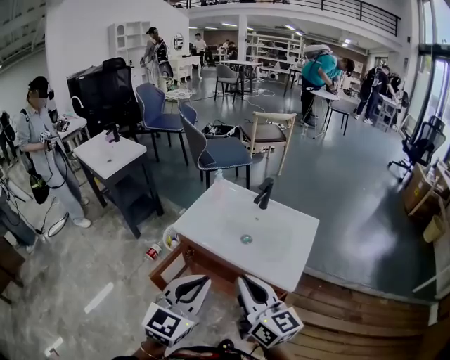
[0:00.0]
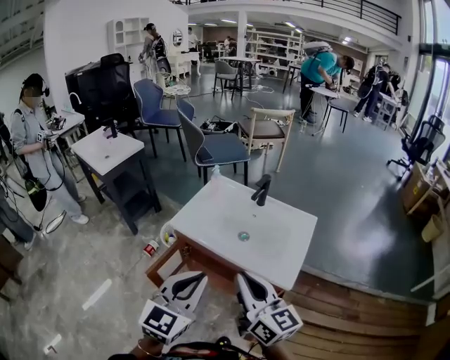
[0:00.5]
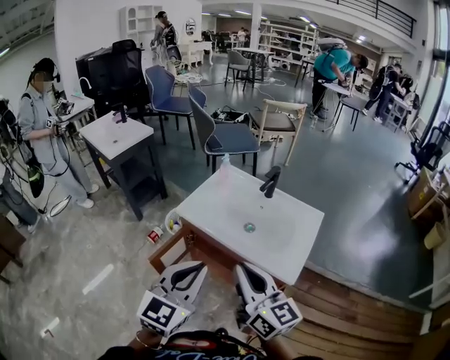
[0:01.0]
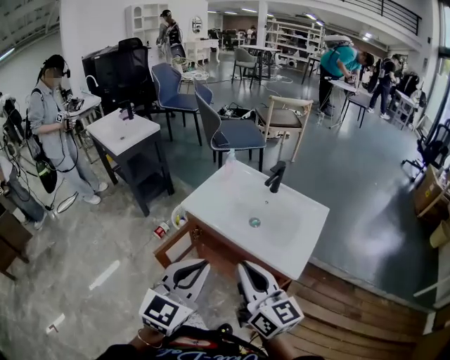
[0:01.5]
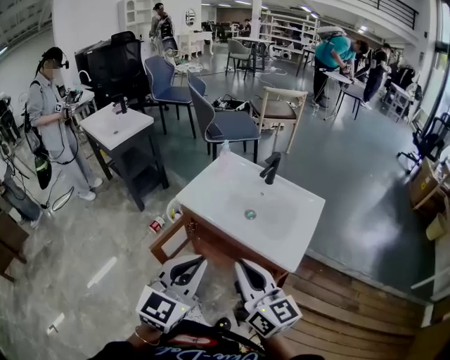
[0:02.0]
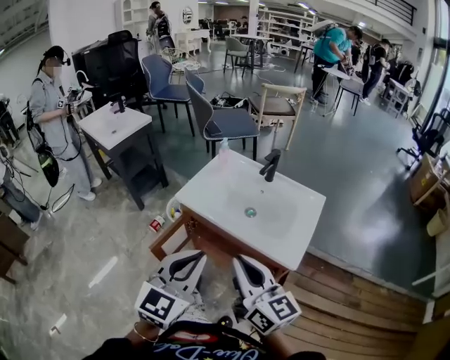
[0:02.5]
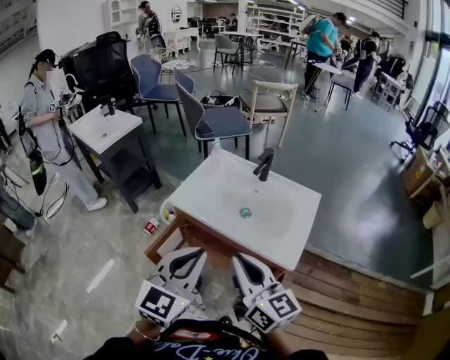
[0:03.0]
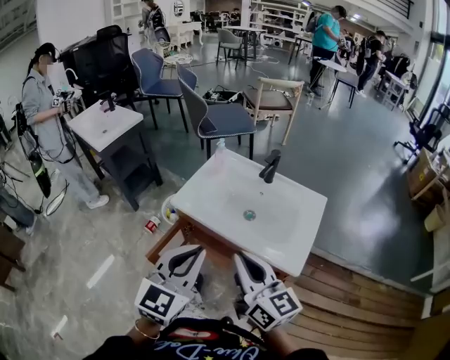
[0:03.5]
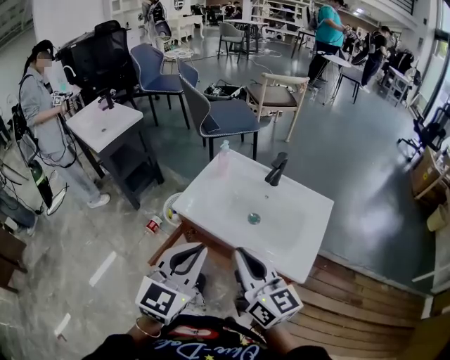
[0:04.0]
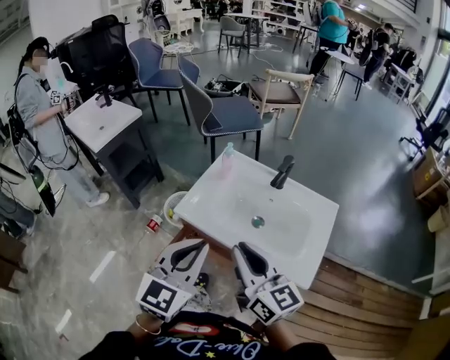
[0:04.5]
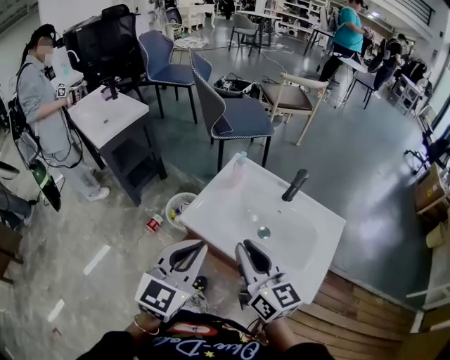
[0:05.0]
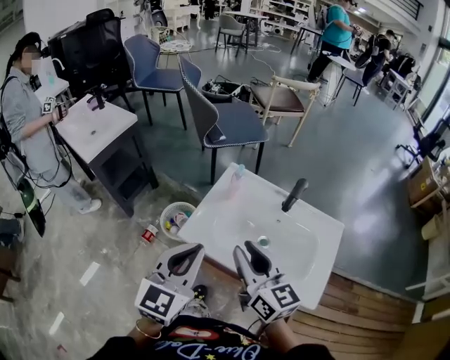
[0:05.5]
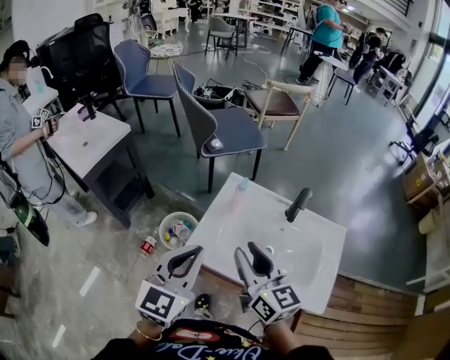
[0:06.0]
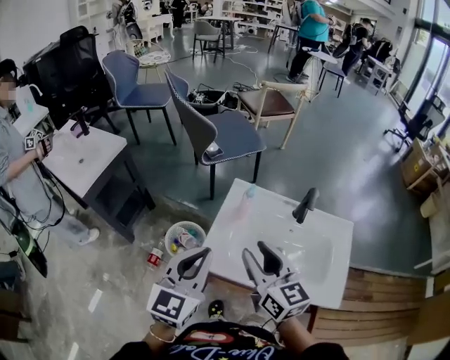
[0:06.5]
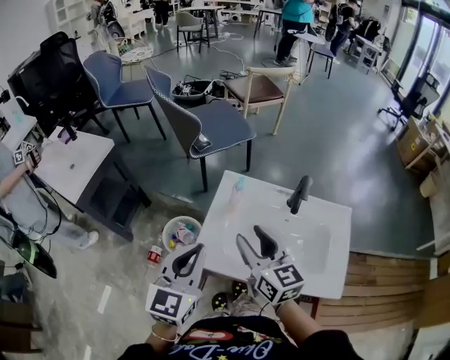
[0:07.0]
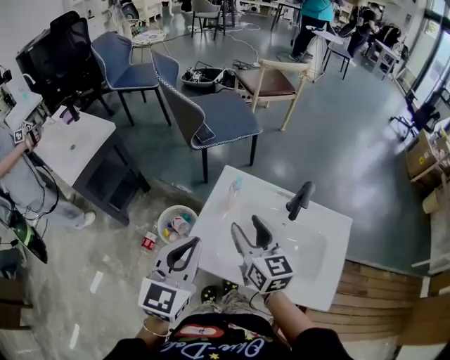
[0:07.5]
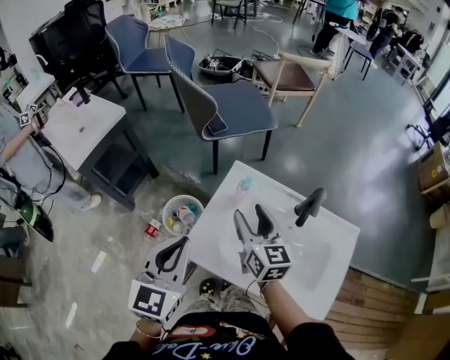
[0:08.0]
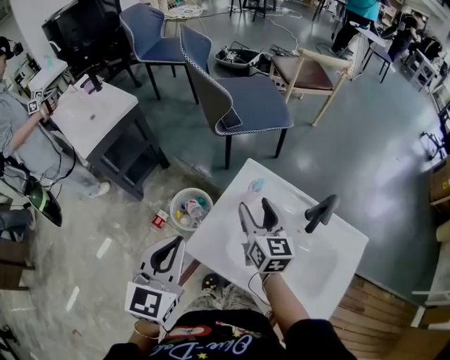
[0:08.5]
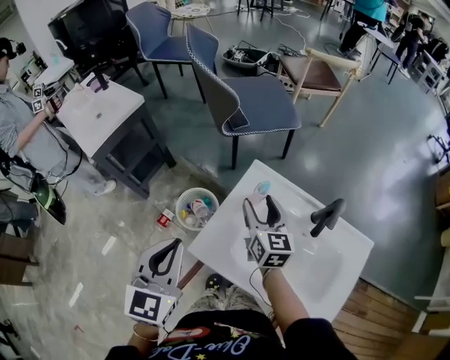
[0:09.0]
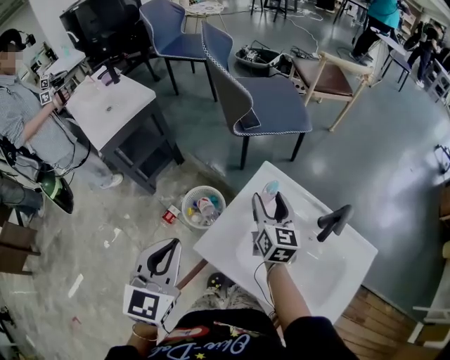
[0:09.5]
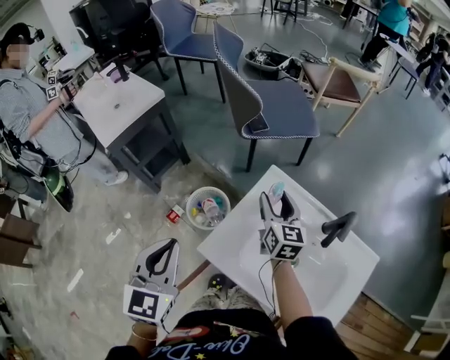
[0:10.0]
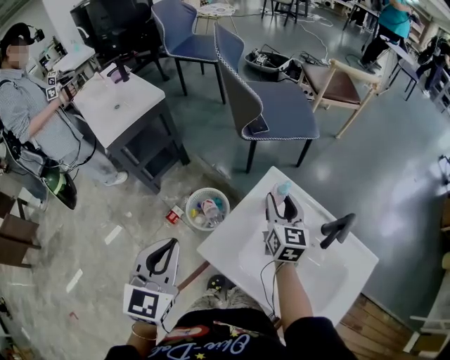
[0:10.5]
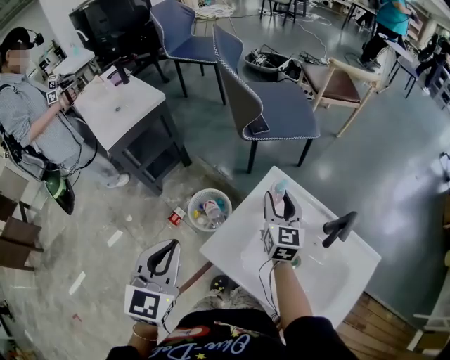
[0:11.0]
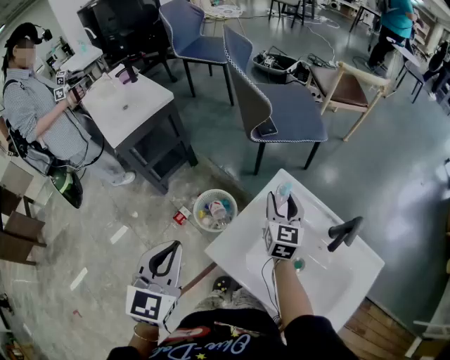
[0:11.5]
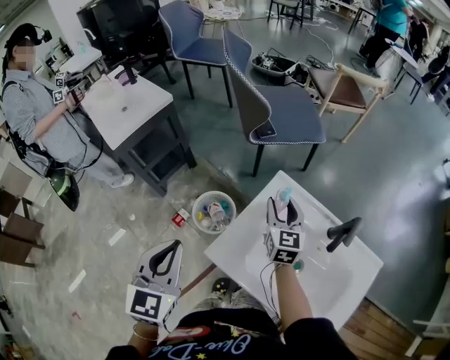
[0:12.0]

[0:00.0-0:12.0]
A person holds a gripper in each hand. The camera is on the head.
0:00.0 to 0:02.0: The grippers make only small movements.
0:02.0 to 0:04.0: Both grippers move forward, approximately 10 cm.
0:04.0 to 0:06.0: The right gripper is displaced forward by roughly 20 cm, and opens its fingers. Meanwhile the left gripper shifts about 20 cm forward and to the left.
0:06.0 to 0:08.0: The right gripper is displaced forward and downward by roughly 15 cm, and opens. Meanwhile the left gripper is displaced forward by about 5 cm.
0:08.0 to 0:10.0: The left gripper is displaced to the left by some 10 cm; the right gripper heads forward and downward, covering about 10 cm.
0:10.0 to 0:12.0: The grippers move only a little.

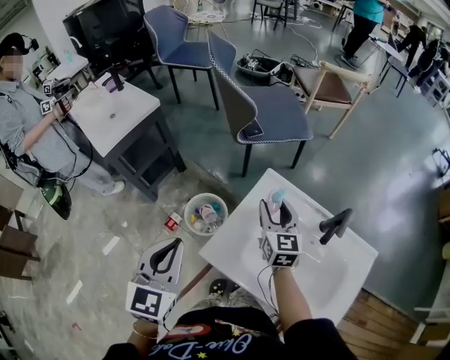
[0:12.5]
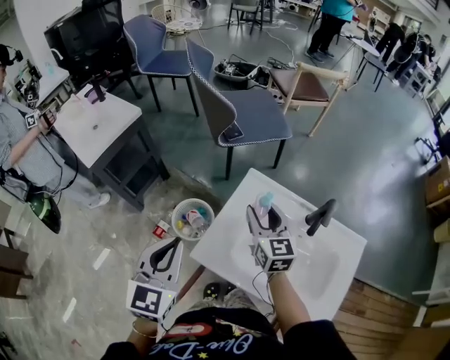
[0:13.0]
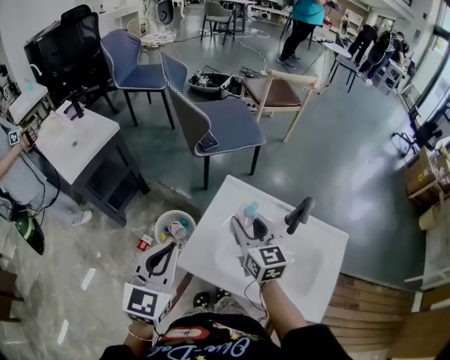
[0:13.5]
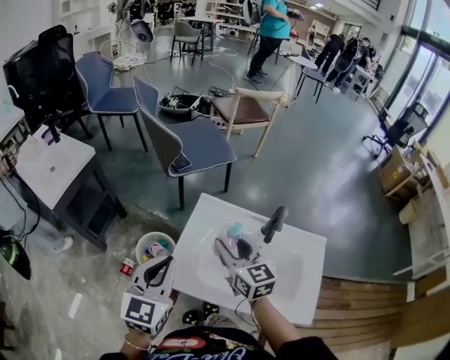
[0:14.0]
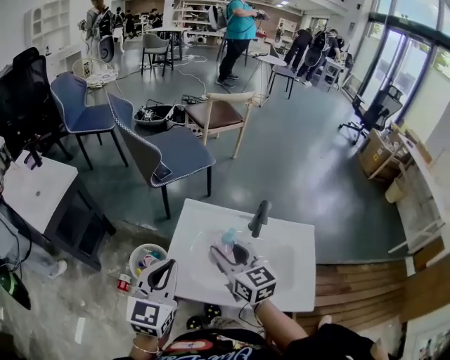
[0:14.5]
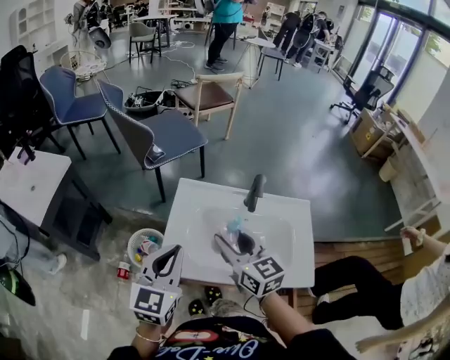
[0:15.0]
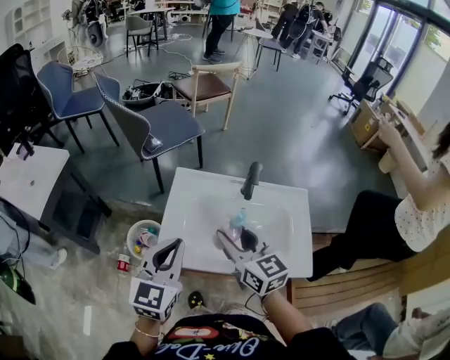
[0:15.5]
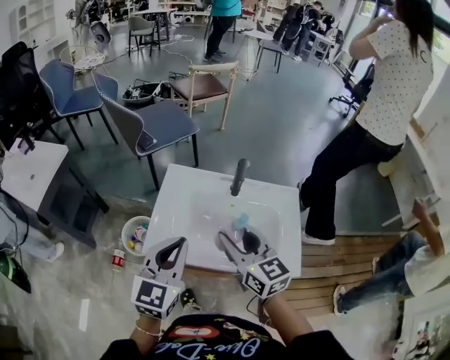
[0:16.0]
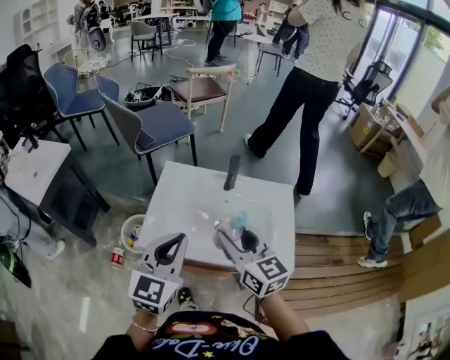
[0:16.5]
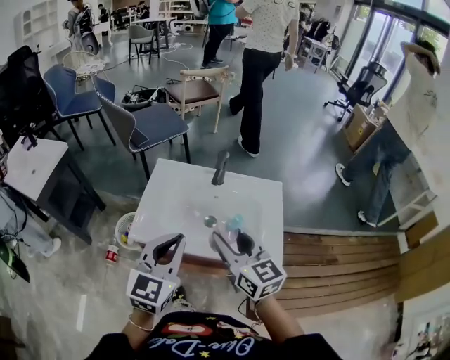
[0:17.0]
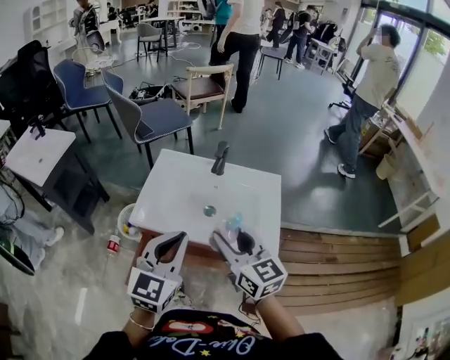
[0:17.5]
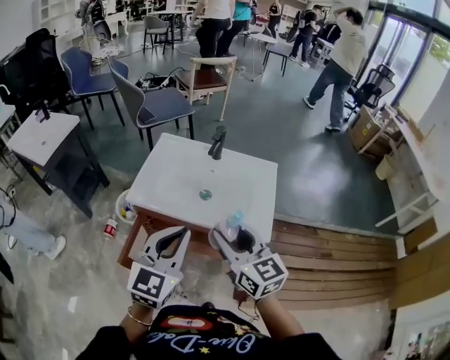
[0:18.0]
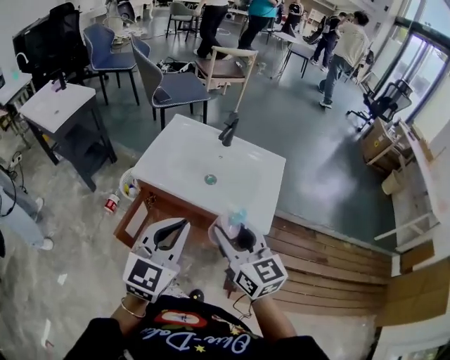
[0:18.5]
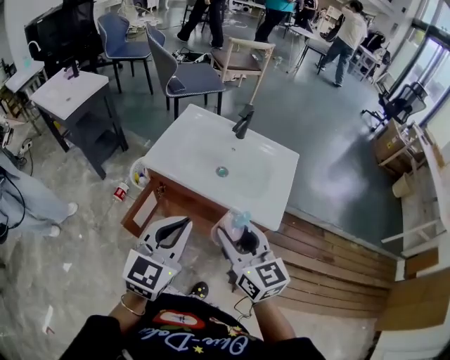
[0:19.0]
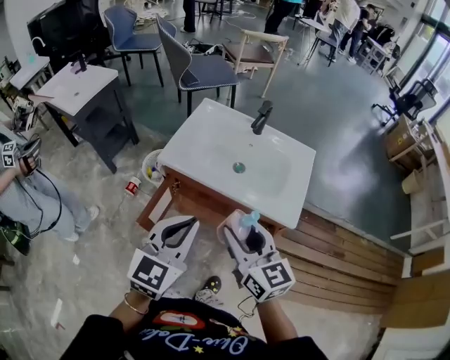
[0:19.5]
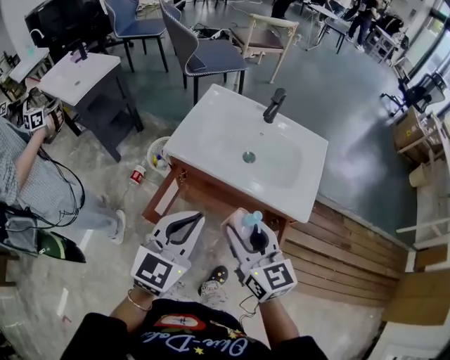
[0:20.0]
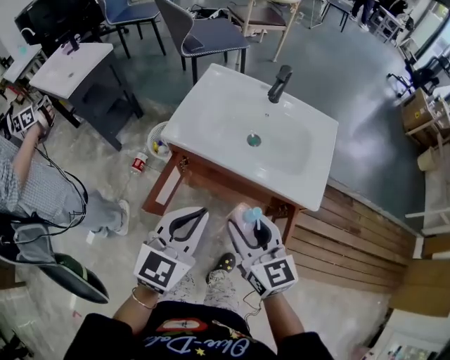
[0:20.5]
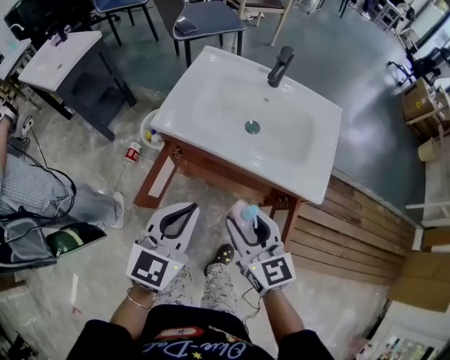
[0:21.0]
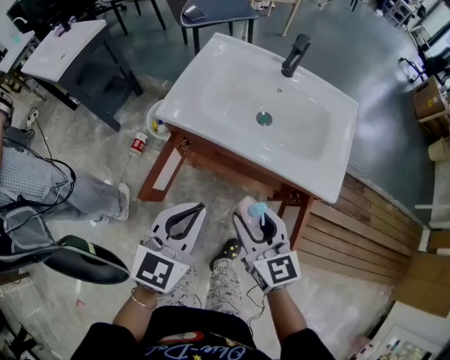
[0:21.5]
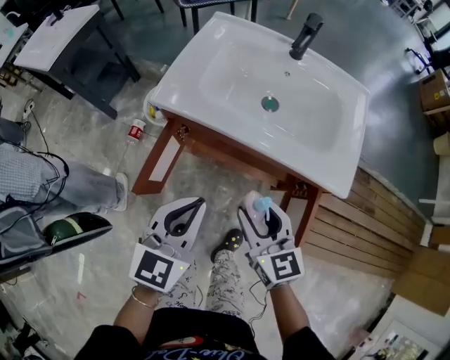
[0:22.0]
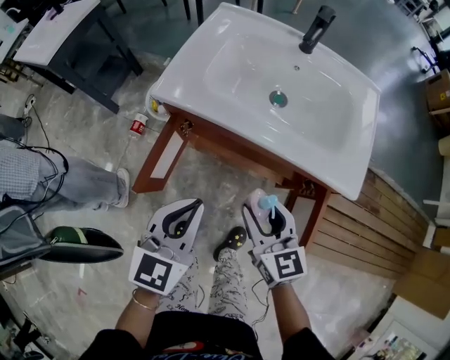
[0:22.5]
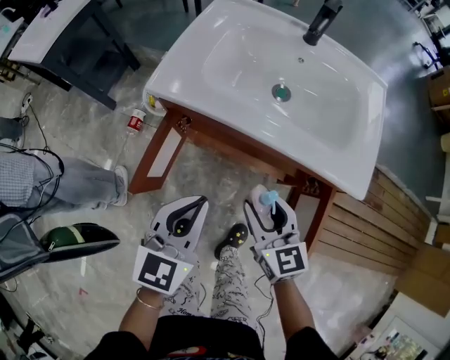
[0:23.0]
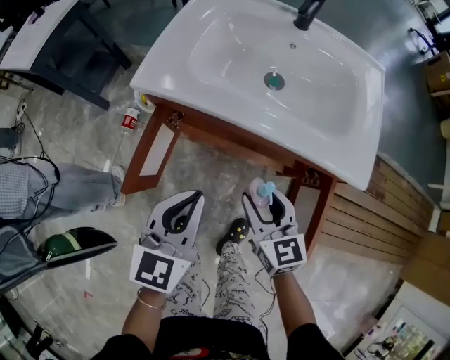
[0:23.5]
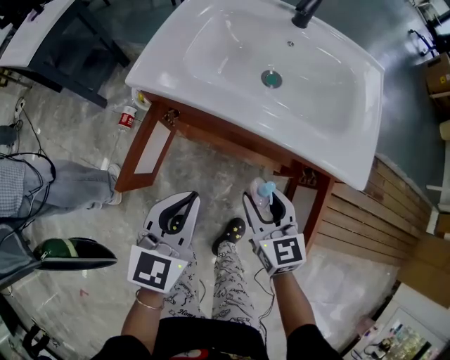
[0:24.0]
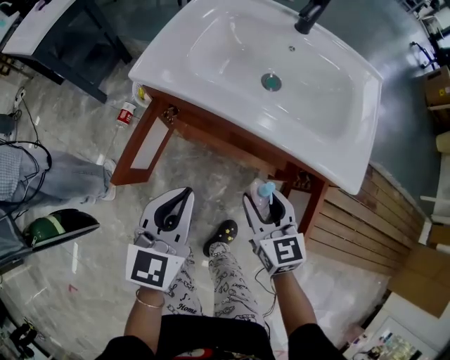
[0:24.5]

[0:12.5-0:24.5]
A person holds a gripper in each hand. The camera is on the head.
0:12.5 to 0:14.5: The right gripper is displaced backward and upward by roughly 15 cm, while the left gripper moves to the right, some 10 cm, and rotates some 30 degrees.
0:14.5 to 0:16.5: The right gripper goes some 15 cm backward and to the right, while the left gripper is displaced to the right and backward by roughly 15 cm.
0:16.5 to 0:18.5: The right gripper moves backward, some 20 cm, while the left gripper is displaced backward and to the right by roughly 20 cm.
0:18.5 to 0:20.5: The grippers both shift downward and to the left by approximately 10 cm.
0:20.5 to 0:22.5: The two grippers go roughly 15 cm downward.
0:22.5 to 0:24.5: The right gripper is displaced downward by roughly 5 cm.

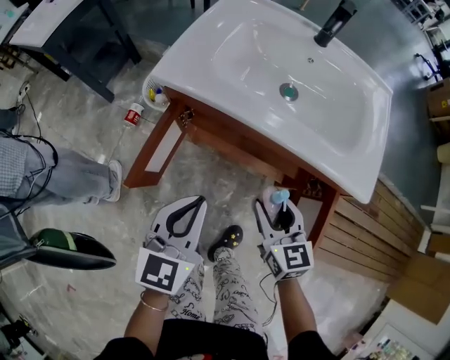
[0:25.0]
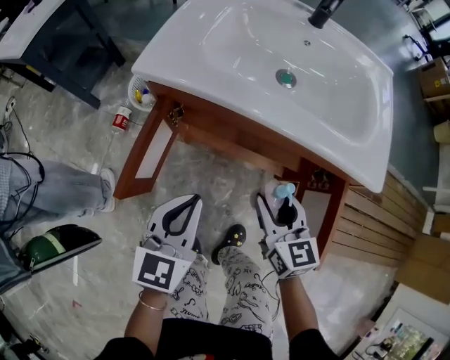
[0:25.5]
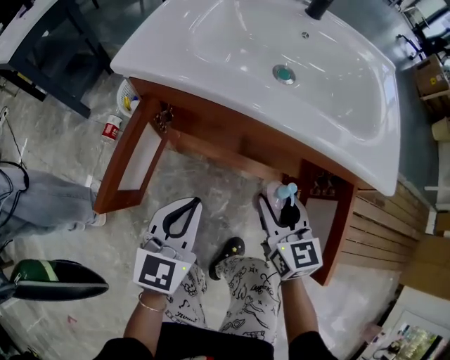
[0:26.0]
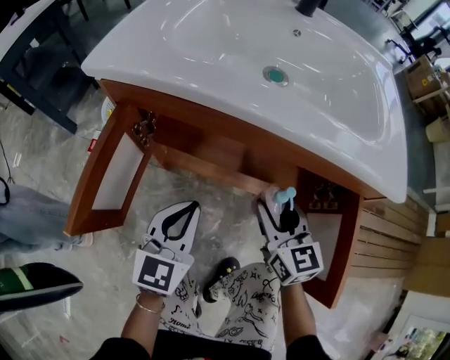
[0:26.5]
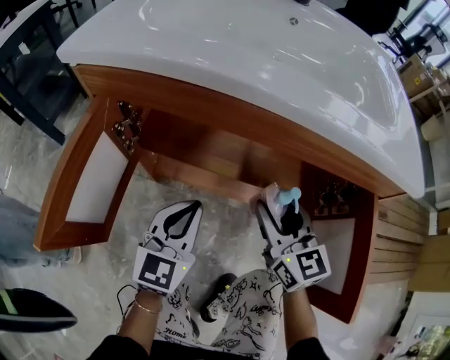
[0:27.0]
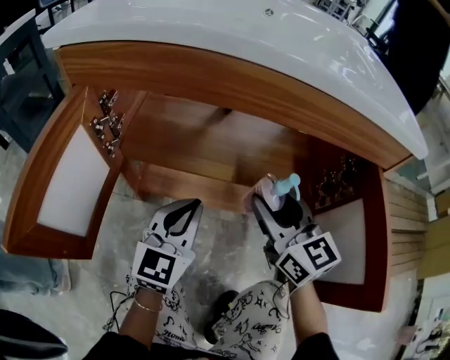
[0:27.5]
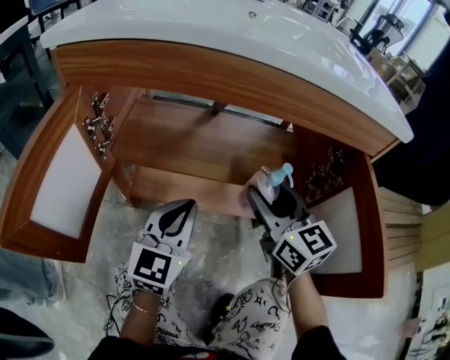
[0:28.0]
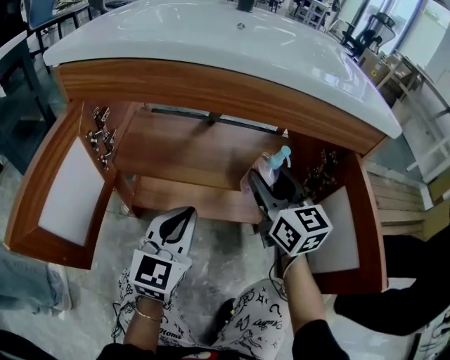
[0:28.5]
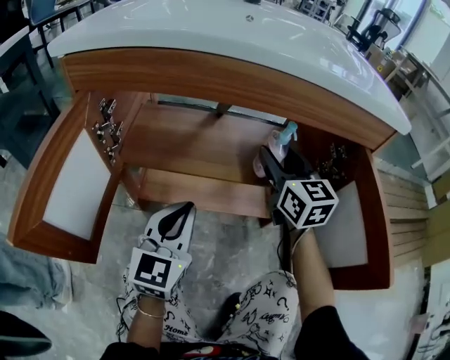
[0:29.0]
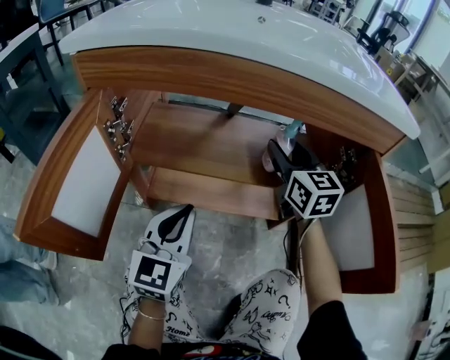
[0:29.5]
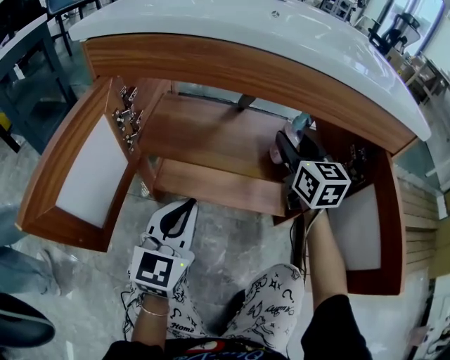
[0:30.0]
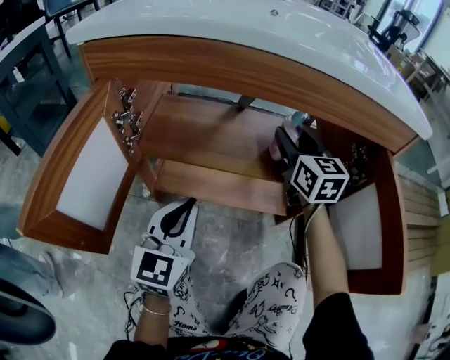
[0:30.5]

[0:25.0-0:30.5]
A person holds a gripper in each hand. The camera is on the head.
0:25.0 to 0:27.0: The left gripper travels downward by about 25 cm, while the right gripper is displaced downward and forward by some 15 cm.
0:27.0 to 0:28.5: The right gripper travels forward by about 5 cm.
0:28.5 to 0:30.5: The right gripper heads forward, covering some 10 cm. The left gripper moves to the left, approximately 5 cm.
